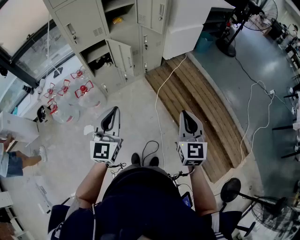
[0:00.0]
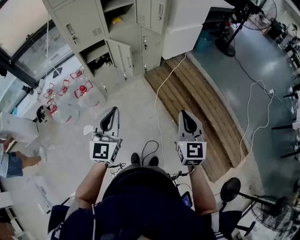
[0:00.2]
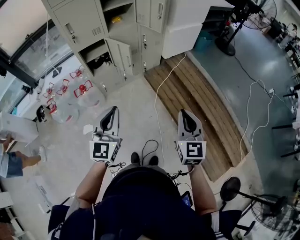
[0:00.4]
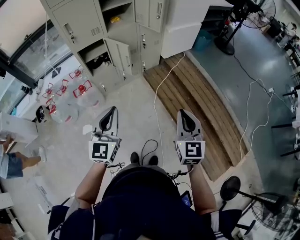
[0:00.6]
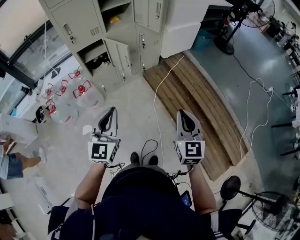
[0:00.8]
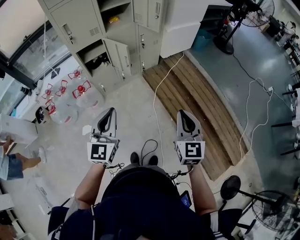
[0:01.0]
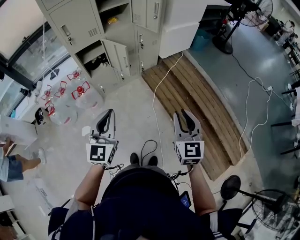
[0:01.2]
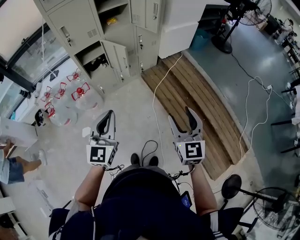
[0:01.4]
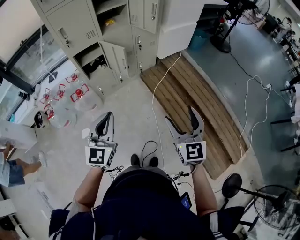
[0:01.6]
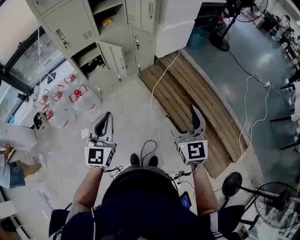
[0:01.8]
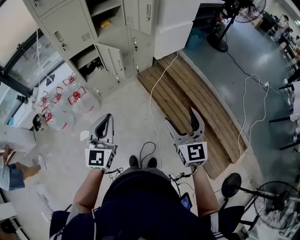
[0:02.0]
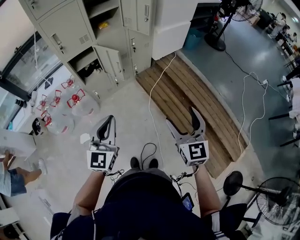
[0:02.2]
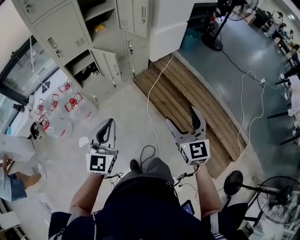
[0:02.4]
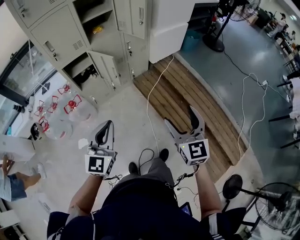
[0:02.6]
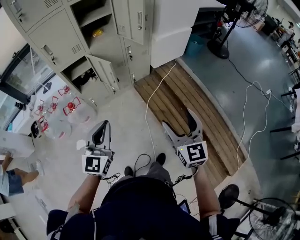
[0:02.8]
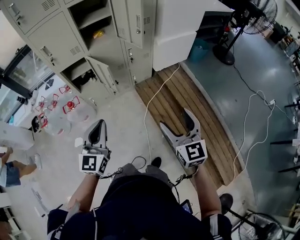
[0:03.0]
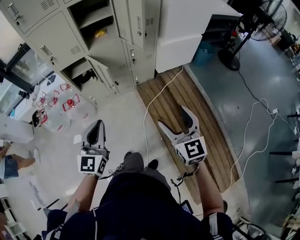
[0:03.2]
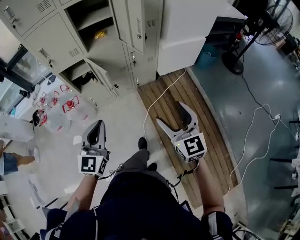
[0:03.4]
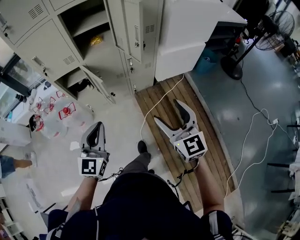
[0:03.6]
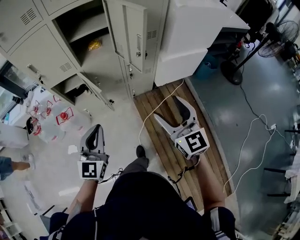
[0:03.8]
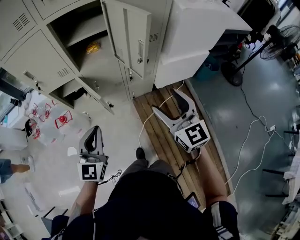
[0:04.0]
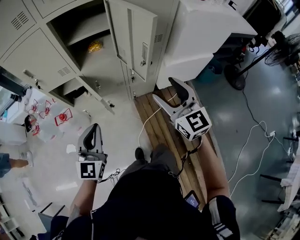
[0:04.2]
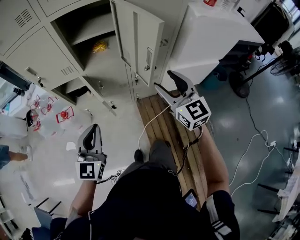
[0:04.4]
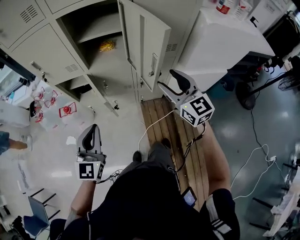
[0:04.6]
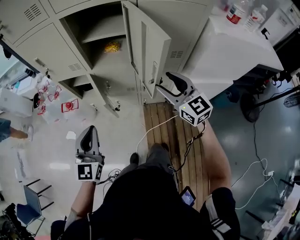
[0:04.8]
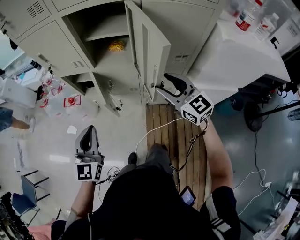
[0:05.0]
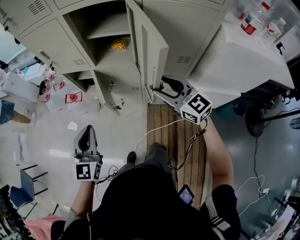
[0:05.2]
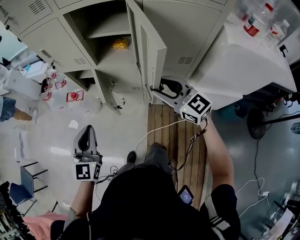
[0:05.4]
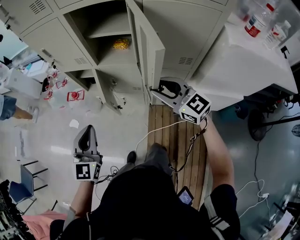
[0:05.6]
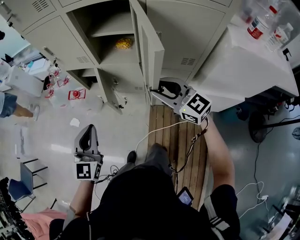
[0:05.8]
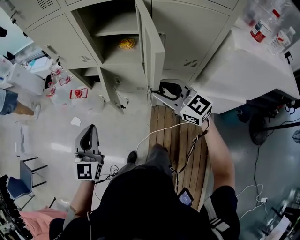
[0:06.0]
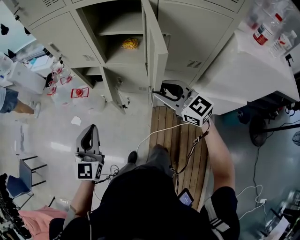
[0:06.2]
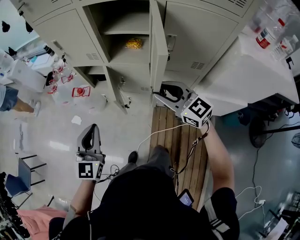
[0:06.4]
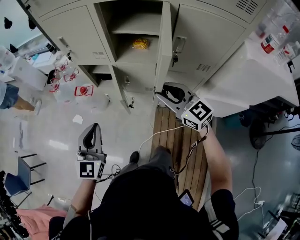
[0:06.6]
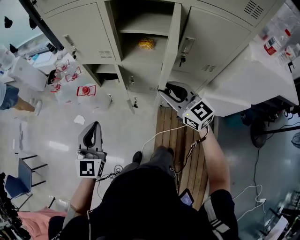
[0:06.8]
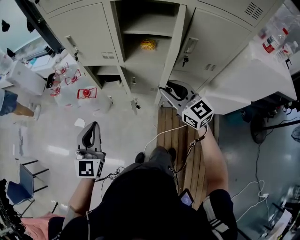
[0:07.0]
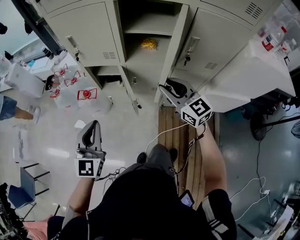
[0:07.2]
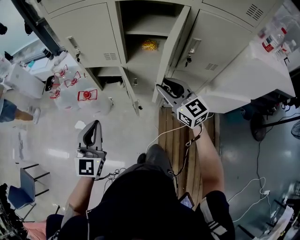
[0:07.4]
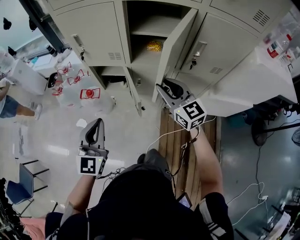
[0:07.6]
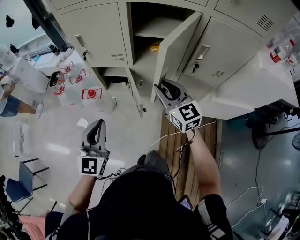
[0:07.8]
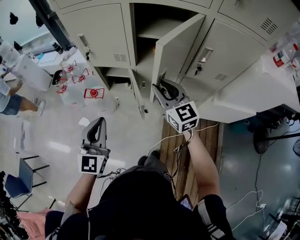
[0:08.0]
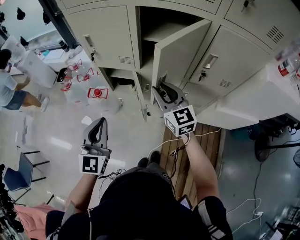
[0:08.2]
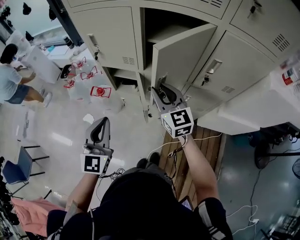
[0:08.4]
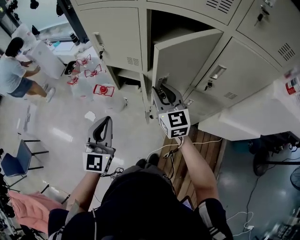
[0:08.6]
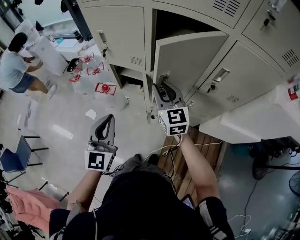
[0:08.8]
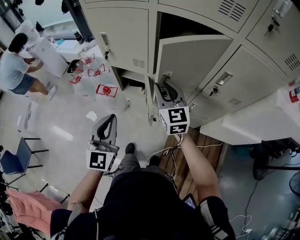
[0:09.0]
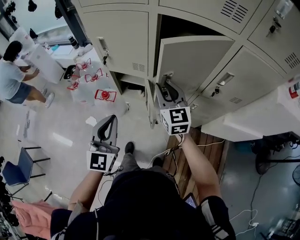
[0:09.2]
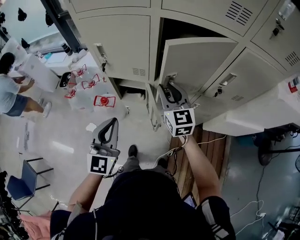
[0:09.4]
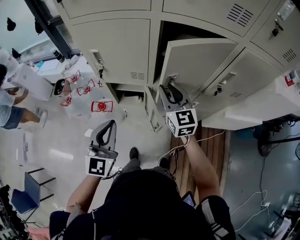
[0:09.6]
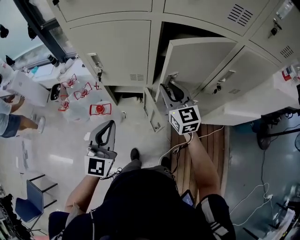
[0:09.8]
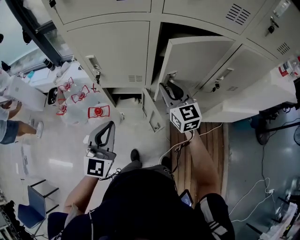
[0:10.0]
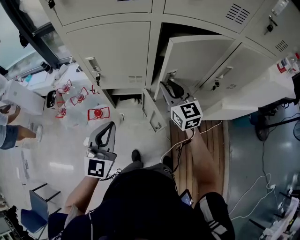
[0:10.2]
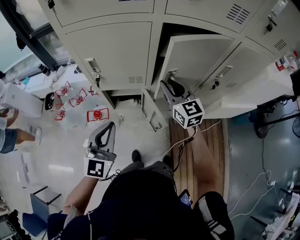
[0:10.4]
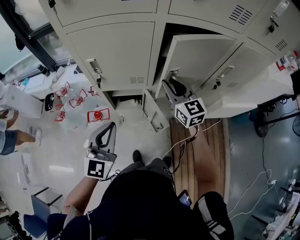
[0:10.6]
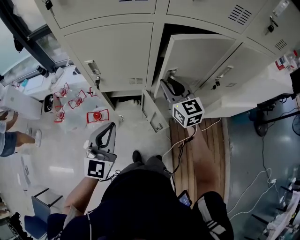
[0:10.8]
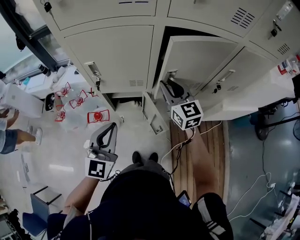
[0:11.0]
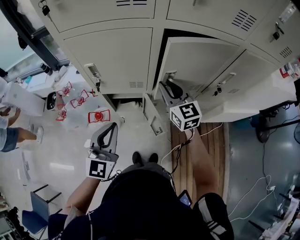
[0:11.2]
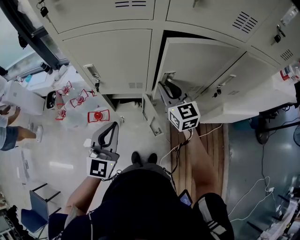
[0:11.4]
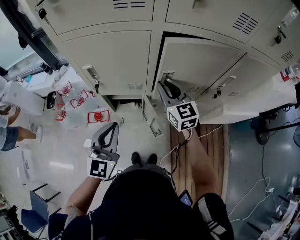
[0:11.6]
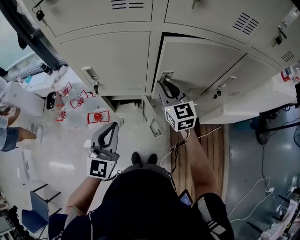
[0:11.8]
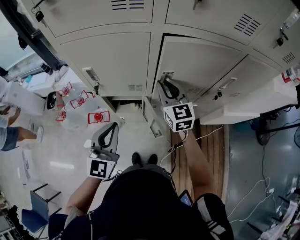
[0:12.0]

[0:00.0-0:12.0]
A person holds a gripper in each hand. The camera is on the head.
0:00.0 to 0:01.6: The right gripper opens.
0:01.6 to 0:03.0: Both grippers move forward and to the right, approximately 20 cm.
0:03.0 to 0:04.4: The left gripper is displaced forward by approximately 25 cm; the right gripper travels forward by some 40 cm, and rotates roughly 30 degrees.
0:04.4 to 0:06.0: The right gripper shifts by about 10 cm, and turns by approximately 50 degrees. The left gripper changes its angle by about 20 degrees.
0:06.0 to 0:07.6: Both grippers travel together to the left and forward, roughly 15 cm. The right gripper swivels about 20 degrees.
0:07.6 to 0:09.0: The right gripper shifts about 10 cm forward and to the left.
0:09.0 to 0:10.4: The left gripper is displaced forward and to the left by roughly 15 cm, and swivels some 30 degrees. Meanwhile the right gripper goes approximately 10 cm forward.
0:10.4 to 0:12.0: The grippers move only a little.

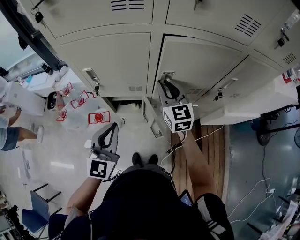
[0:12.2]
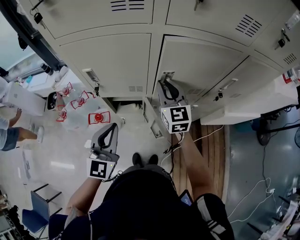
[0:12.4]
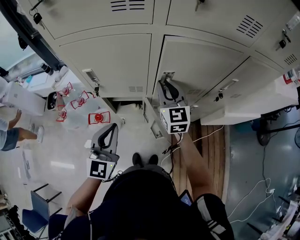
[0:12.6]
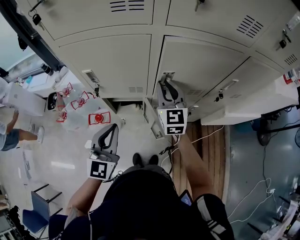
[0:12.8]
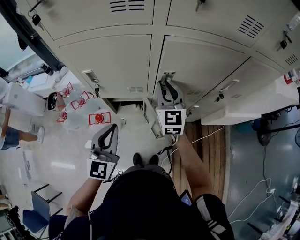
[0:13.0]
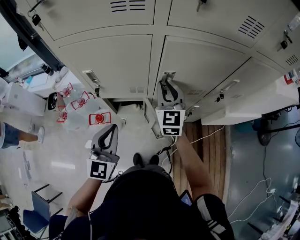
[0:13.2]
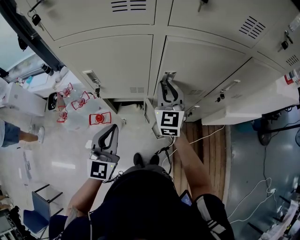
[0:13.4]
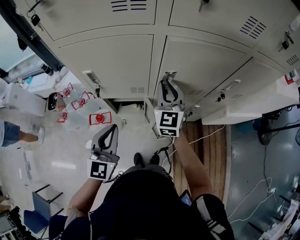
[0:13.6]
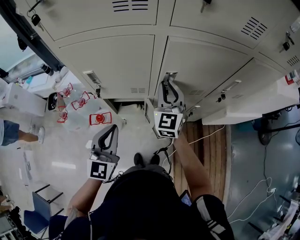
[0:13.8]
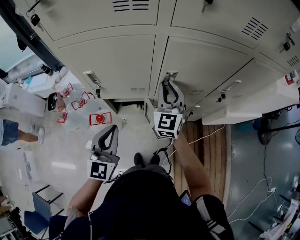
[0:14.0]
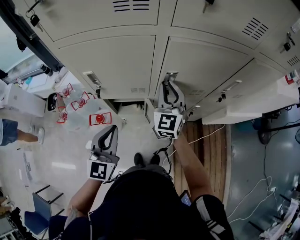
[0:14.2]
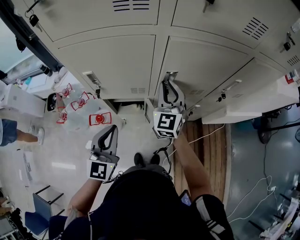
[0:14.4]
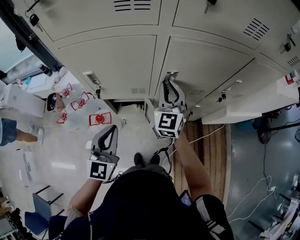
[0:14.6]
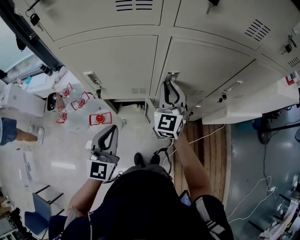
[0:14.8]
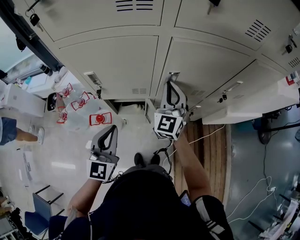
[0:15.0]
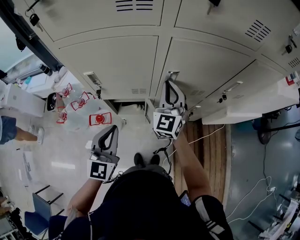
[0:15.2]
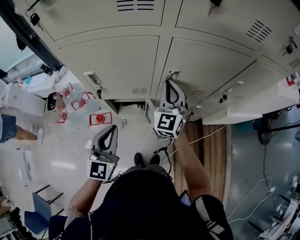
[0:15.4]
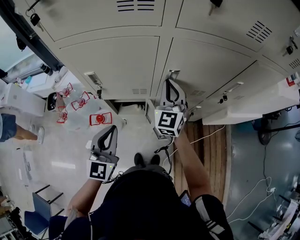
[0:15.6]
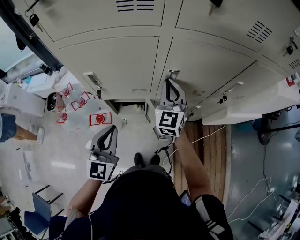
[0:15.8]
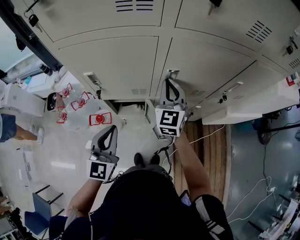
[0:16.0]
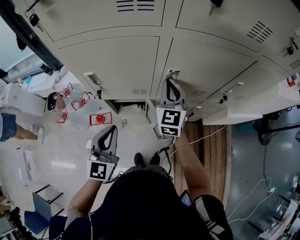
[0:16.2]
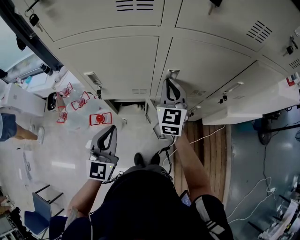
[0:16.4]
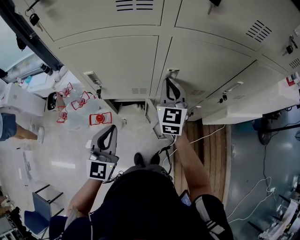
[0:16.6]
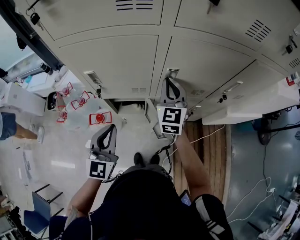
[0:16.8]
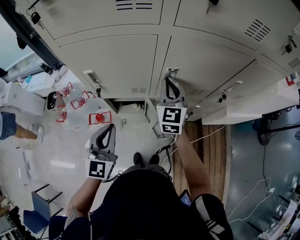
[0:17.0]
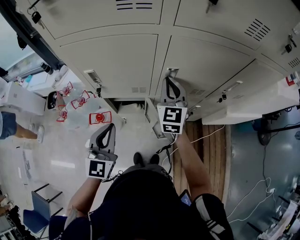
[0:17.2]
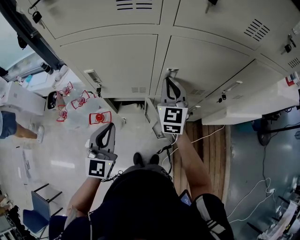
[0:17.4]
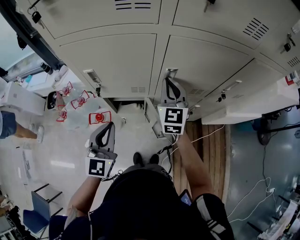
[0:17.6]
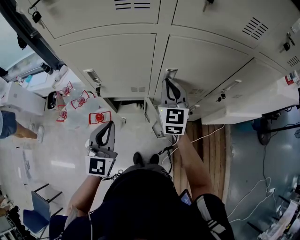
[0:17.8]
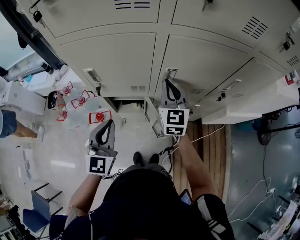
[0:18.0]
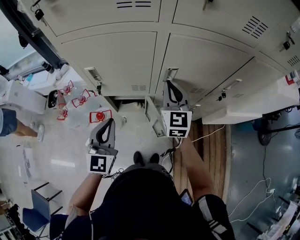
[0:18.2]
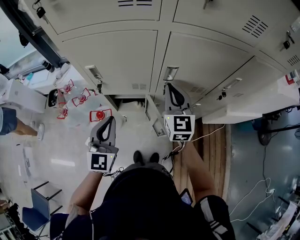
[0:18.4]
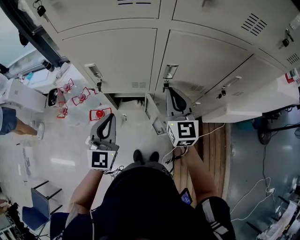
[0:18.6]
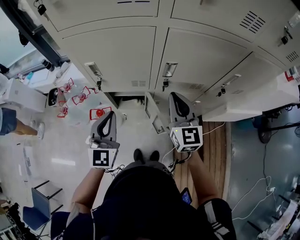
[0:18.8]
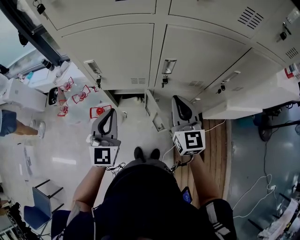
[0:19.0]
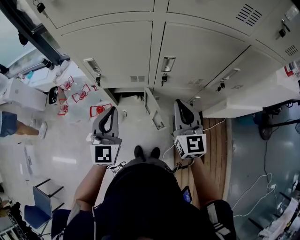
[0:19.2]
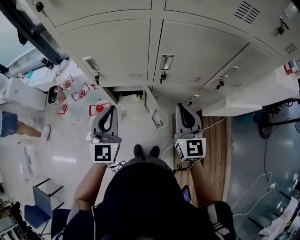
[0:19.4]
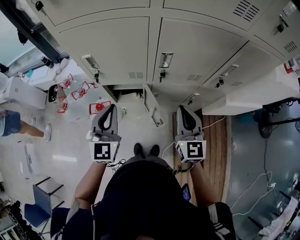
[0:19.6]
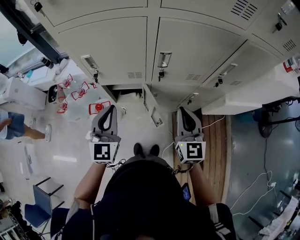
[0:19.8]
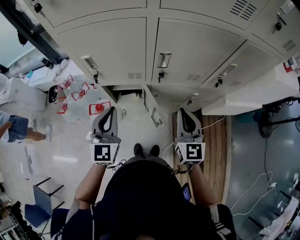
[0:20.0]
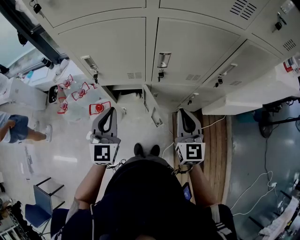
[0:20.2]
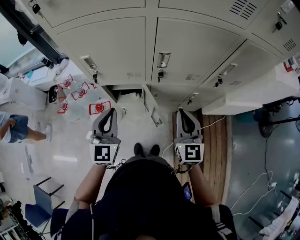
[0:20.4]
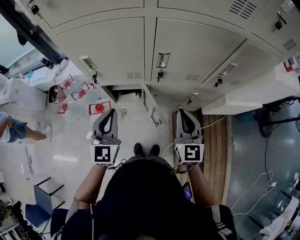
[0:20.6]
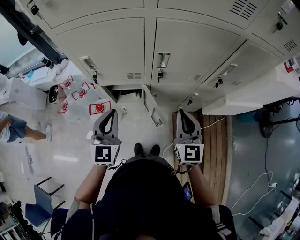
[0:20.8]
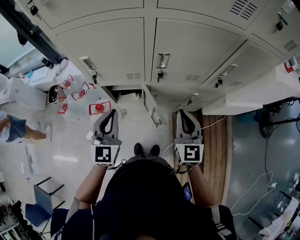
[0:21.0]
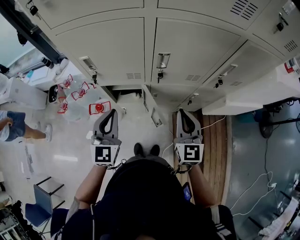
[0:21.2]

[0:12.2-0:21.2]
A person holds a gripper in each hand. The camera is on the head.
0:12.2 to 0:13.8: The right gripper swivels about 20 degrees.
0:13.8 to 0:18.2: There are only small adjustments of the grippers.
0:18.2 to 0:19.8: The right gripper shifts roughly 15 cm backward and to the right.
0:19.8 to 0:21.2: The grippers make only small movements.

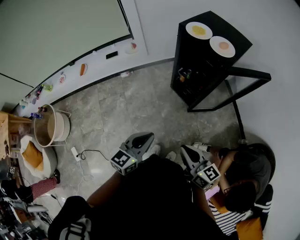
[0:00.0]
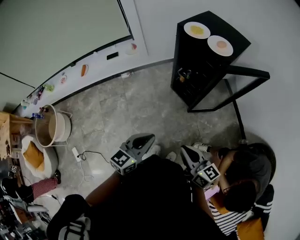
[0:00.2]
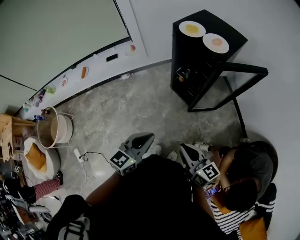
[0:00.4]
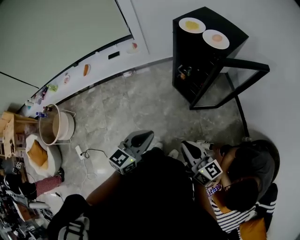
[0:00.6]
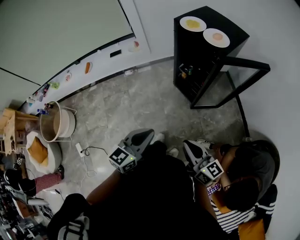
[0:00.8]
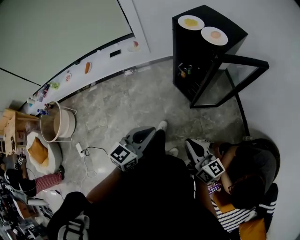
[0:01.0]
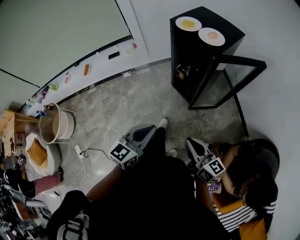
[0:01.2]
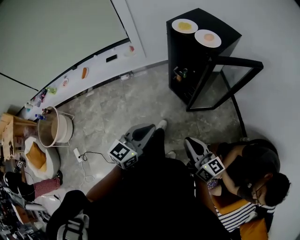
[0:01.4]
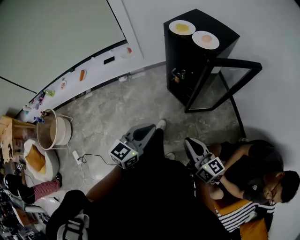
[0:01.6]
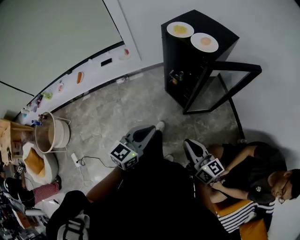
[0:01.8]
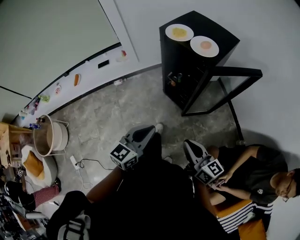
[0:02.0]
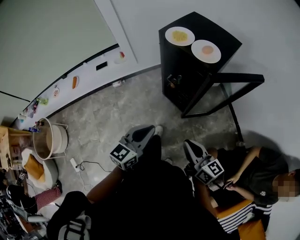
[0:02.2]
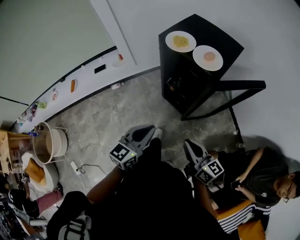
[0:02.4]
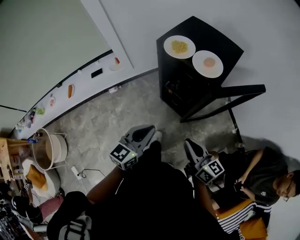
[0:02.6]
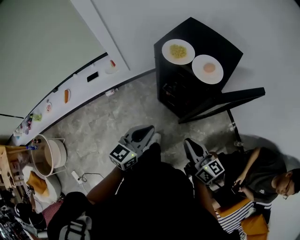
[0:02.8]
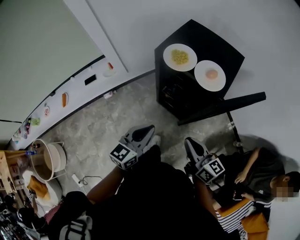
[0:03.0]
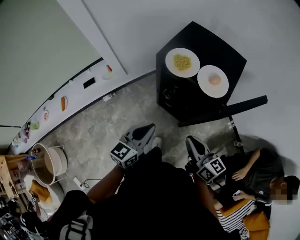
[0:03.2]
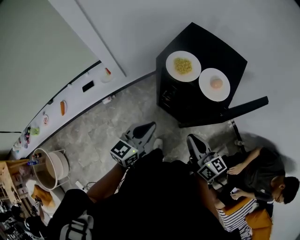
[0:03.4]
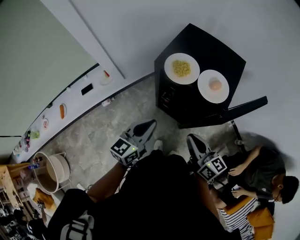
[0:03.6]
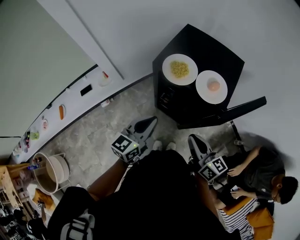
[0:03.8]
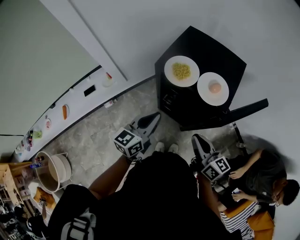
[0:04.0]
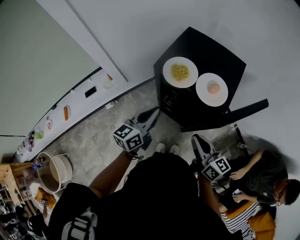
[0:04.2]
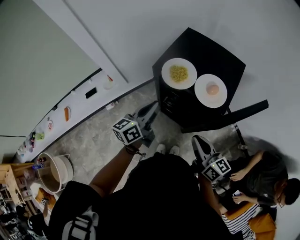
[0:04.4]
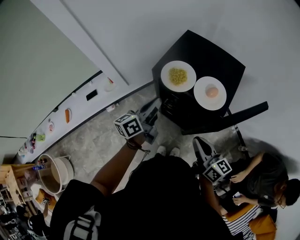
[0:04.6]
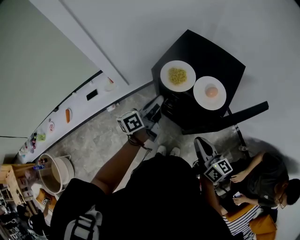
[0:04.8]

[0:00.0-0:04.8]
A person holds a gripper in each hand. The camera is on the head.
0:00.0 to 0:01.6: The grippers both shift to the right by some 10 cm.
0:01.6 to 0:03.2: Both grippers travel together forward, about 30 cm.
0:03.2 to 0:04.8: The right gripper shifts roughly 5 cm forward. Meanwhile the left gripper heads forward, covering some 20 cm, and twists roughly 40 degrees counterclockwise, seen from behind.
